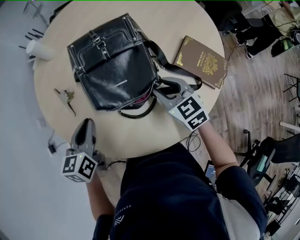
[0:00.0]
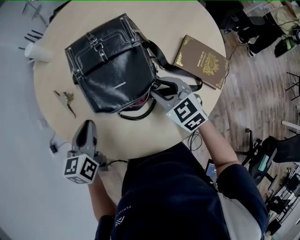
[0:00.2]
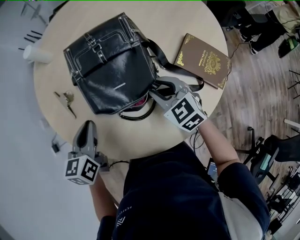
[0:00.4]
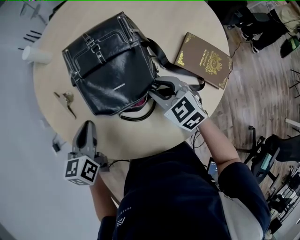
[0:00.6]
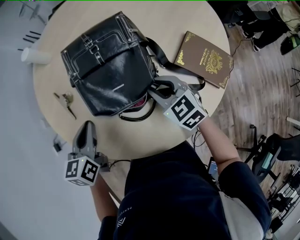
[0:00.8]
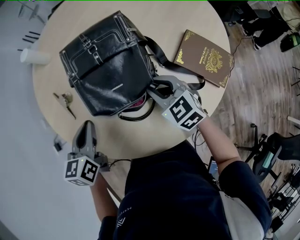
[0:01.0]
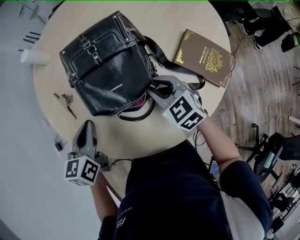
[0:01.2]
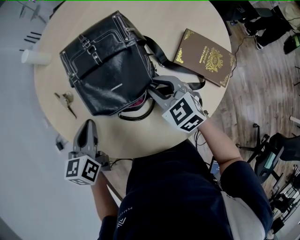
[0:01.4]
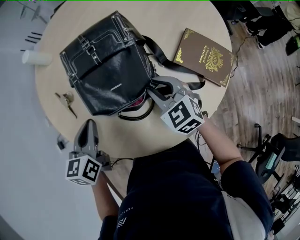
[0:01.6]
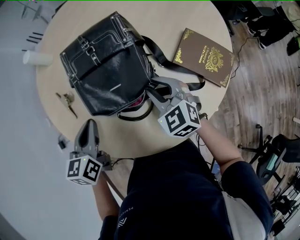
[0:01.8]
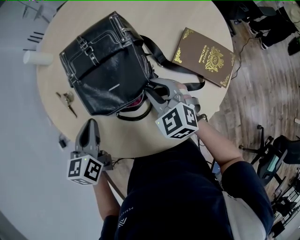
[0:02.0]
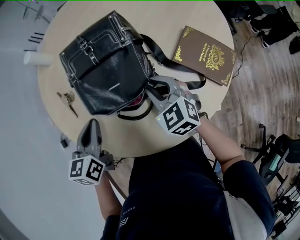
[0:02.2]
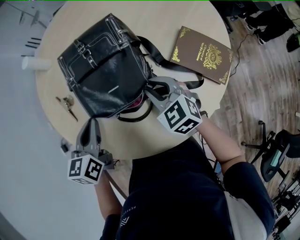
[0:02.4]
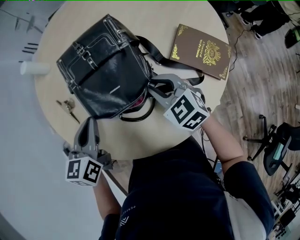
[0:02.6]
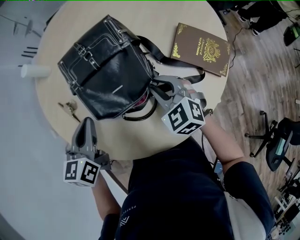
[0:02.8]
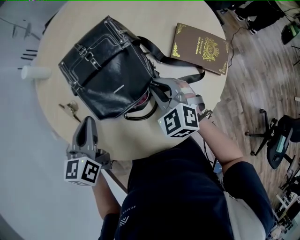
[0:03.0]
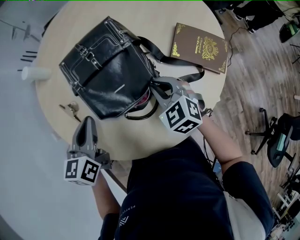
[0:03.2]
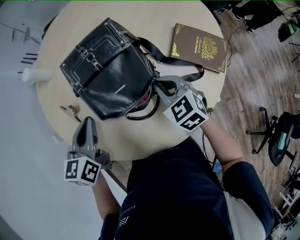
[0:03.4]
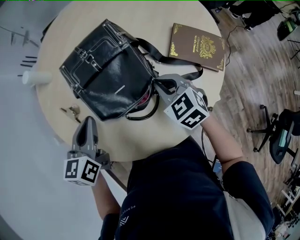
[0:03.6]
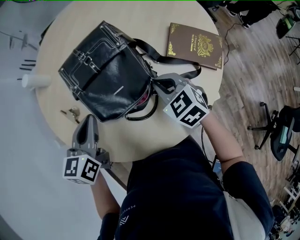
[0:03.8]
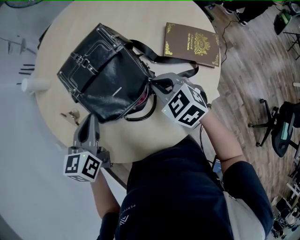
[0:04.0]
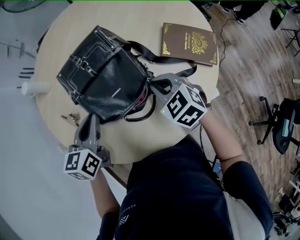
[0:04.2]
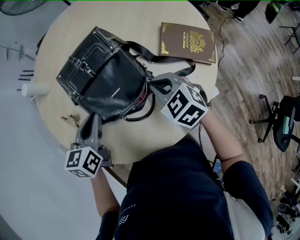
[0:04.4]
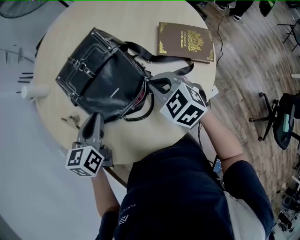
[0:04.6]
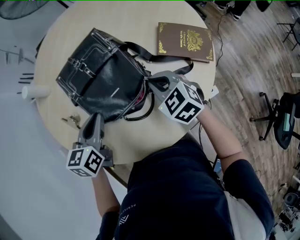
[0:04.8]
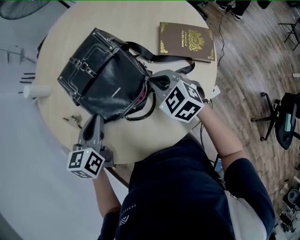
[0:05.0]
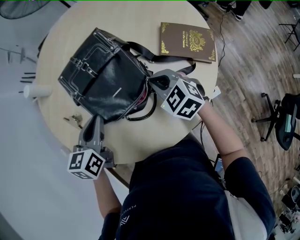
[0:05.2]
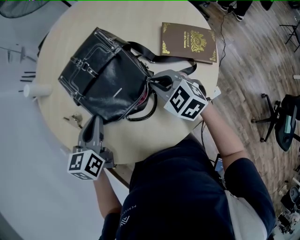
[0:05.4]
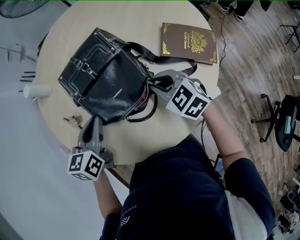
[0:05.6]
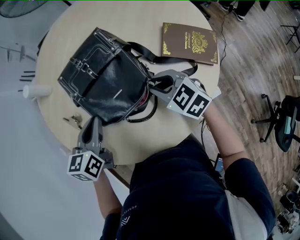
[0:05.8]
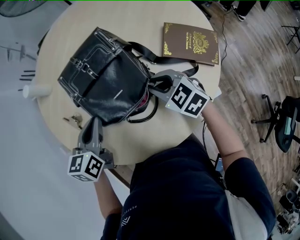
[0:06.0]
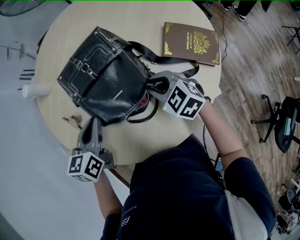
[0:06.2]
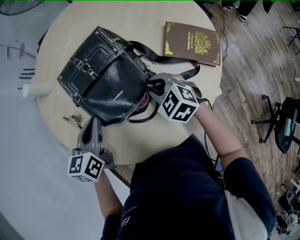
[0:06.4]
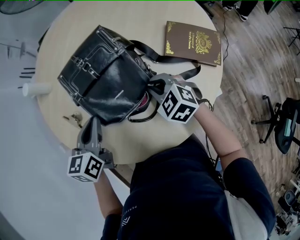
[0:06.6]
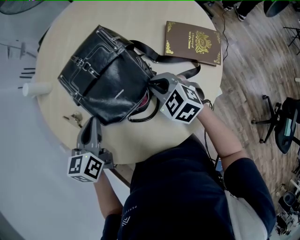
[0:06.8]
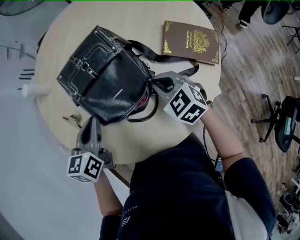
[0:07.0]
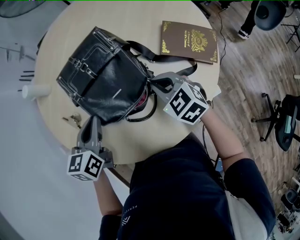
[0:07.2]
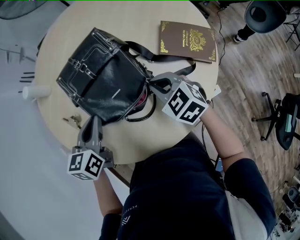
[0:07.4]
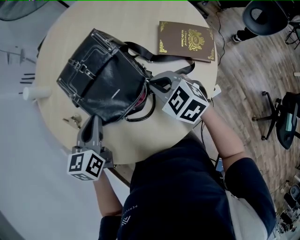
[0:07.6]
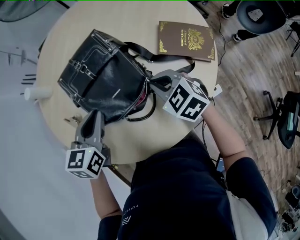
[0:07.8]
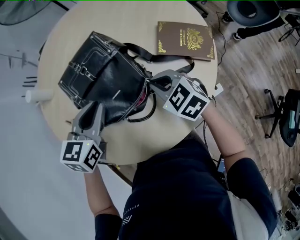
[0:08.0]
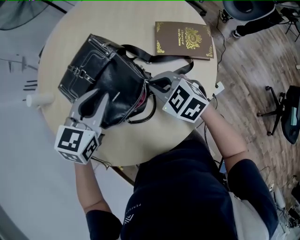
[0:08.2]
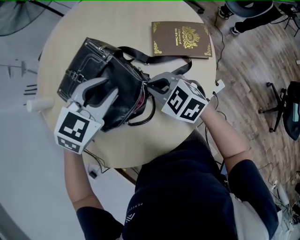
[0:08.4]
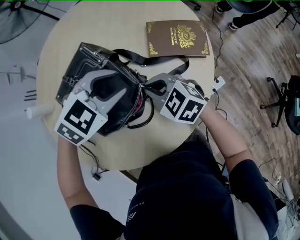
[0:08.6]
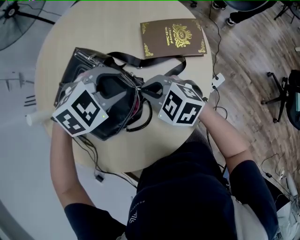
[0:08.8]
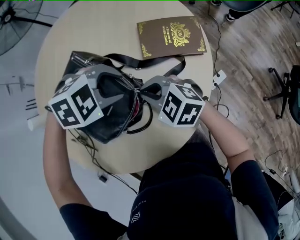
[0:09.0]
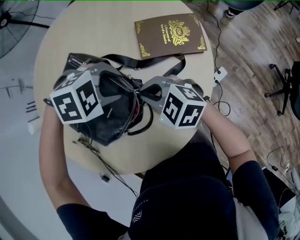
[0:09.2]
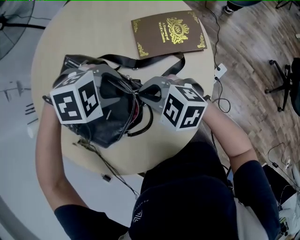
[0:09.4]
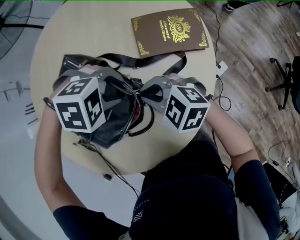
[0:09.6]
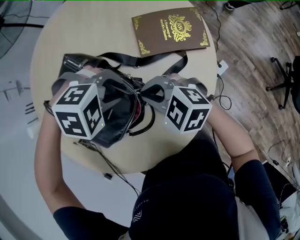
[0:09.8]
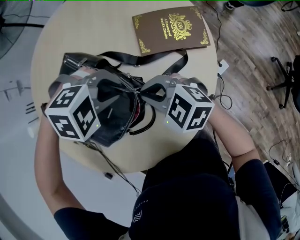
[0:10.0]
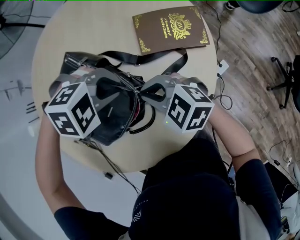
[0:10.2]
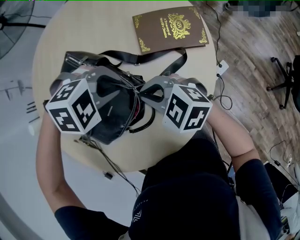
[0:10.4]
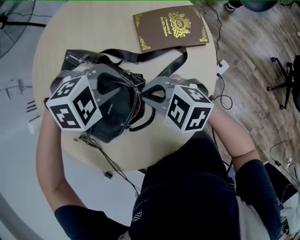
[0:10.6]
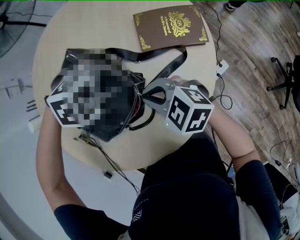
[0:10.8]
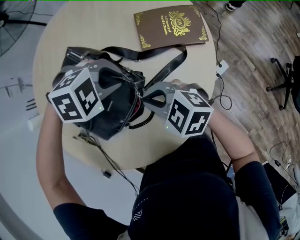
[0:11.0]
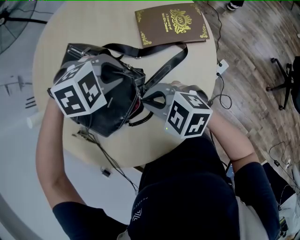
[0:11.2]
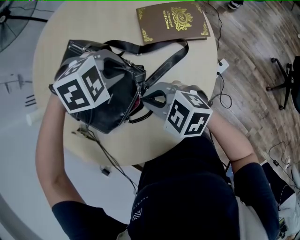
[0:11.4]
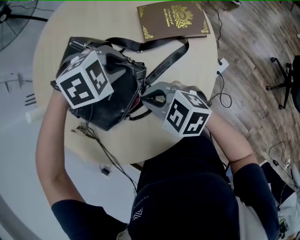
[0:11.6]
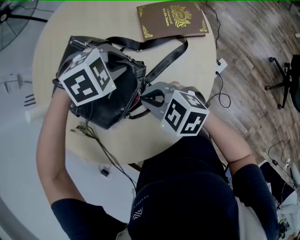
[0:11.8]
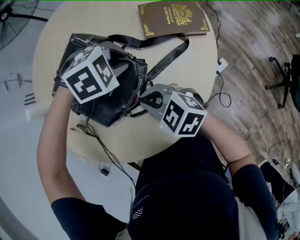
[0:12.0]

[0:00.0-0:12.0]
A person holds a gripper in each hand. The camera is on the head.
0.0 to 1.6 s: The grippers stay close to where they were, moving slightly.
1.6 to 3.0 s: There are only small adjustments of the grippers.
3.0 to 4.4 s: There are only small adjustments of the grippers.
4.4 to 6.0 s: The right gripper opens its fingers.
6.0 to 7.6 s: The right gripper closes up.
7.6 to 9.0 s: The left gripper changes place by roughly 20 cm, tilts its fingers roughly 40 degrees downward, and opens its fingers.
9.0 to 10.4 s: The left gripper closes.
10.4 to 12.0 s: The right gripper ends up roughly 10 cm from where it was.

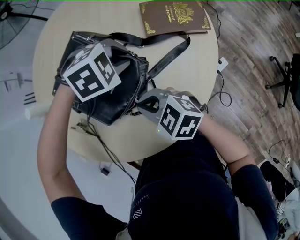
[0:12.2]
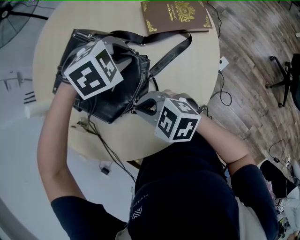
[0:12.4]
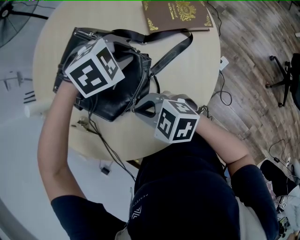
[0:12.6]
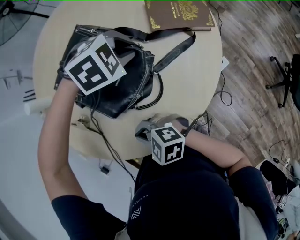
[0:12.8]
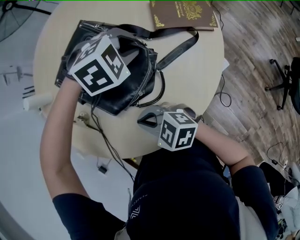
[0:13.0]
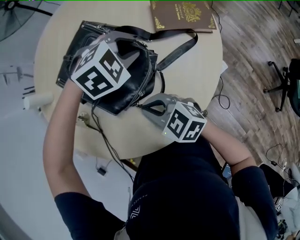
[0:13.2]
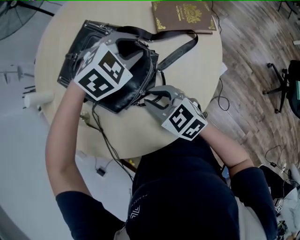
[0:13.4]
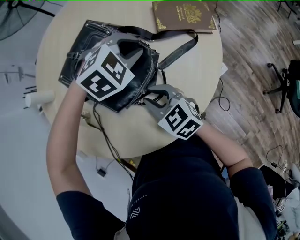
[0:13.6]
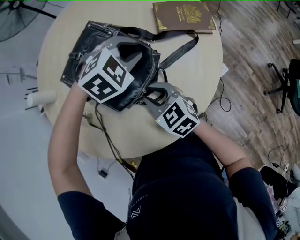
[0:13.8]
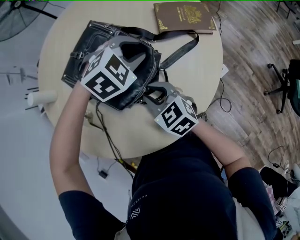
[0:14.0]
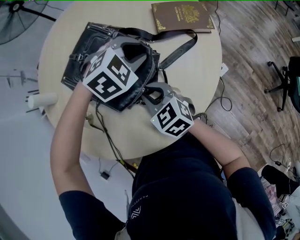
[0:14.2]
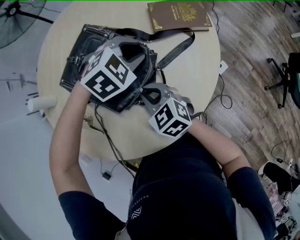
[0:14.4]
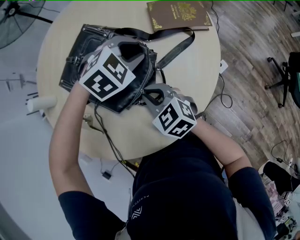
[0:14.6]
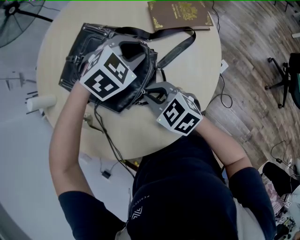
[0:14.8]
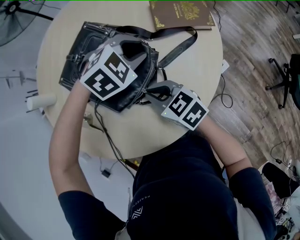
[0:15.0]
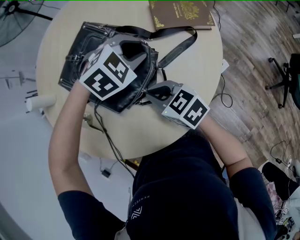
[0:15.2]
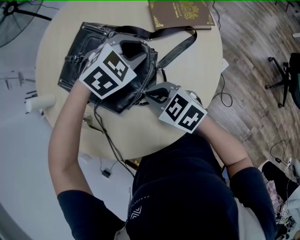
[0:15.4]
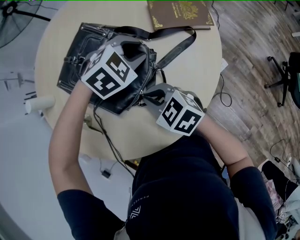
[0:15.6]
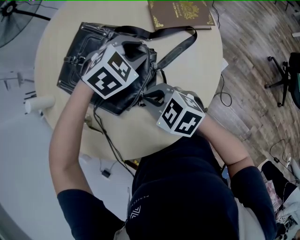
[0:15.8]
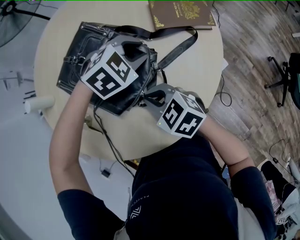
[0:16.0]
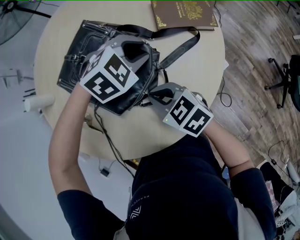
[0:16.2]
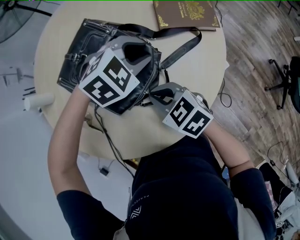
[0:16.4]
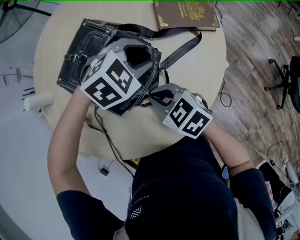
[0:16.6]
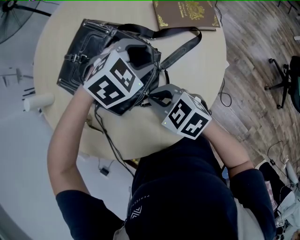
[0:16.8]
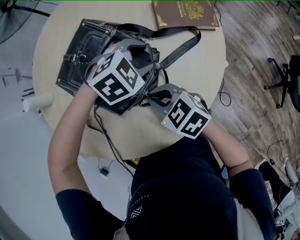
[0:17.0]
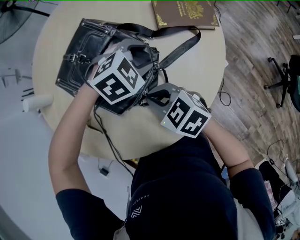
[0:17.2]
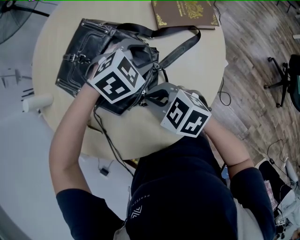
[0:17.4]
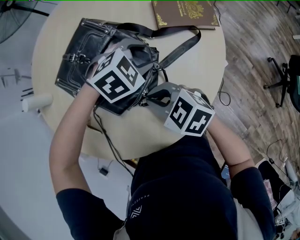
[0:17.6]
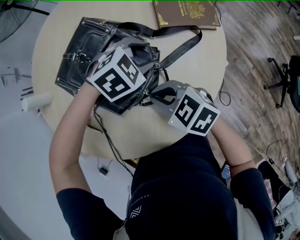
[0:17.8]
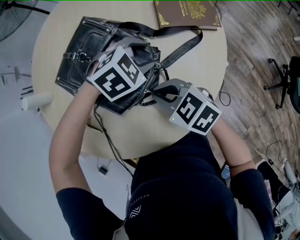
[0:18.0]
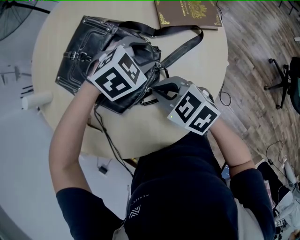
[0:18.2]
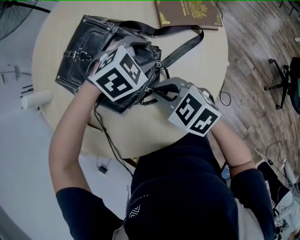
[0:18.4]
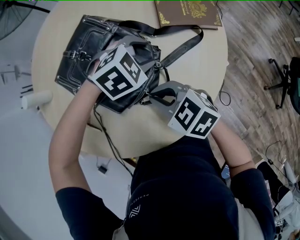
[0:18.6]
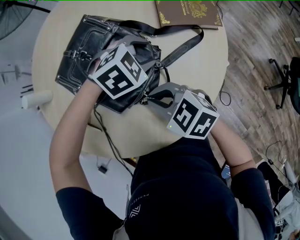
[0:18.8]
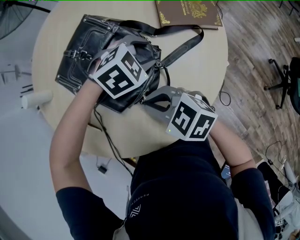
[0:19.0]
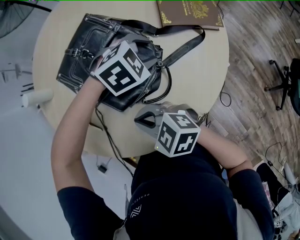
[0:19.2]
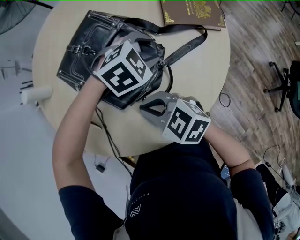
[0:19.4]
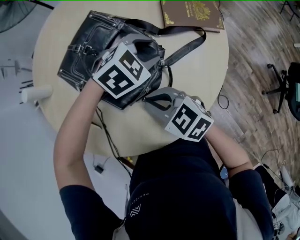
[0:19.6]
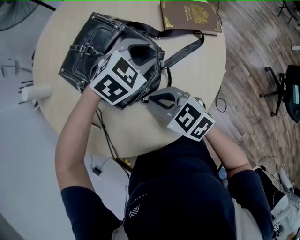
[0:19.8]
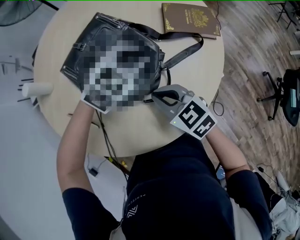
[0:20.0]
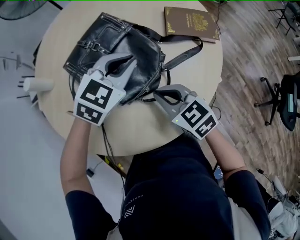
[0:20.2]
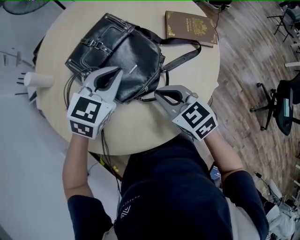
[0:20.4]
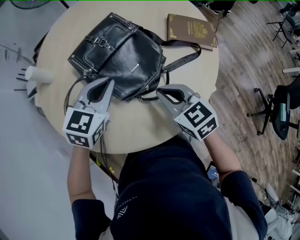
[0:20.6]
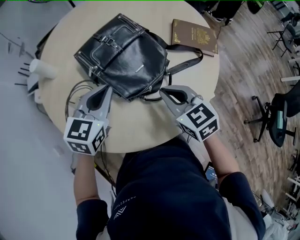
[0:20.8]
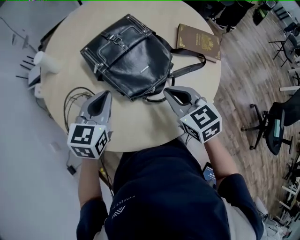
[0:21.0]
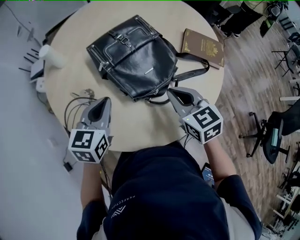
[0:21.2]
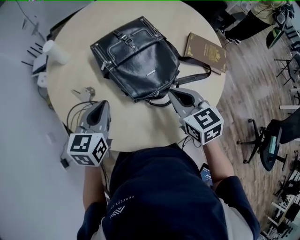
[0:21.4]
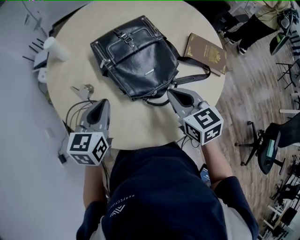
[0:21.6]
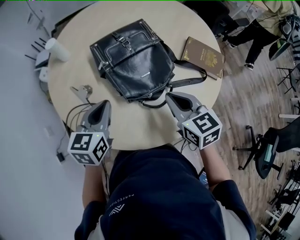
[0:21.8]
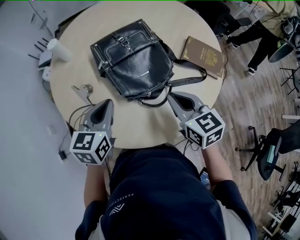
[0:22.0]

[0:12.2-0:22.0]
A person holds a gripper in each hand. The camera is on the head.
12.2 to 13.6 s: The left gripper rotates roughly 20 degrees. Meanwhile the right gripper opens its fingers.
13.6 to 17.8 s: There are only small adjustments of the grippers.
17.8 to 19.2 s: The right gripper changes place by approximately 10 cm.
19.2 to 20.6 s: The left gripper moves about 20 cm, rotates approximately 50 degrees, and closes. The right gripper changes place by some 10 cm, and swivels about 30 degrees.
20.6 to 22.0 s: The left gripper shifts some 5 cm backward, and rotates approximately 30 degrees; the right gripper changes place by about 5 cm.

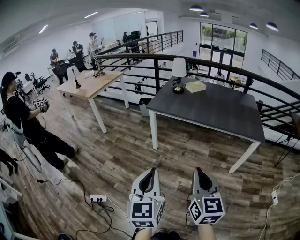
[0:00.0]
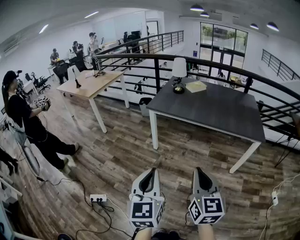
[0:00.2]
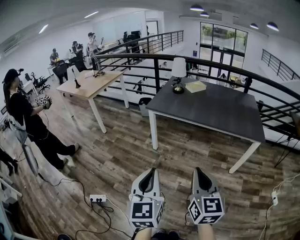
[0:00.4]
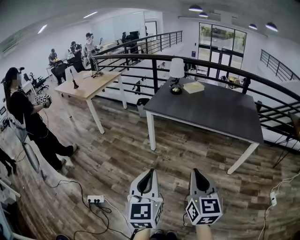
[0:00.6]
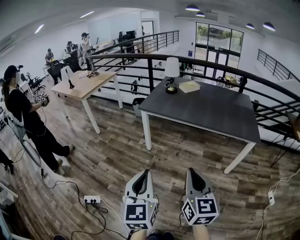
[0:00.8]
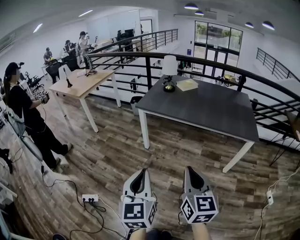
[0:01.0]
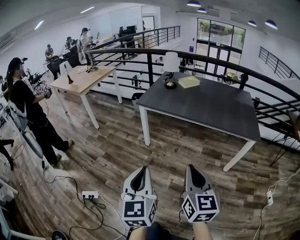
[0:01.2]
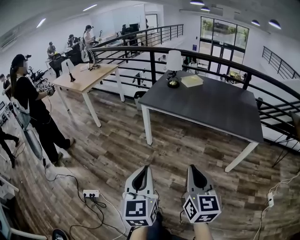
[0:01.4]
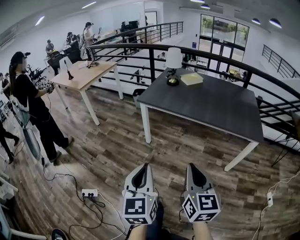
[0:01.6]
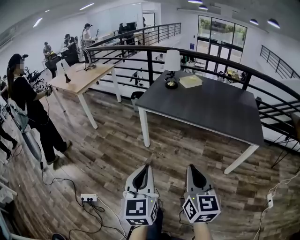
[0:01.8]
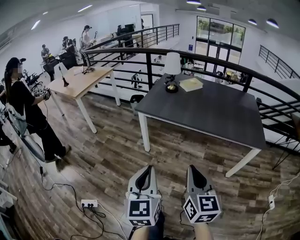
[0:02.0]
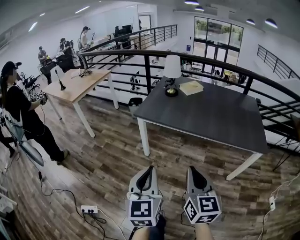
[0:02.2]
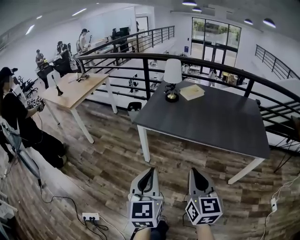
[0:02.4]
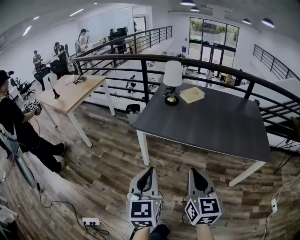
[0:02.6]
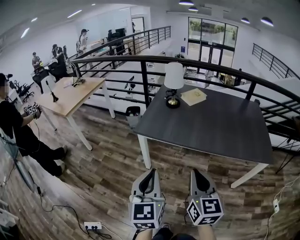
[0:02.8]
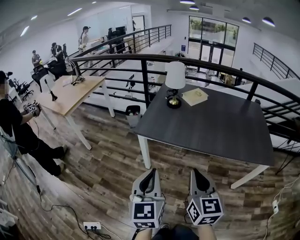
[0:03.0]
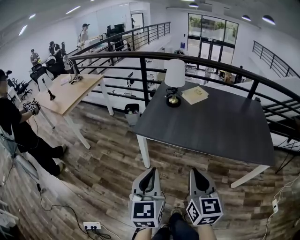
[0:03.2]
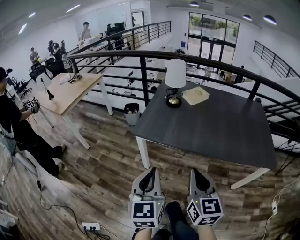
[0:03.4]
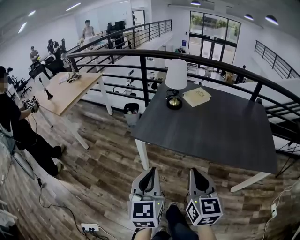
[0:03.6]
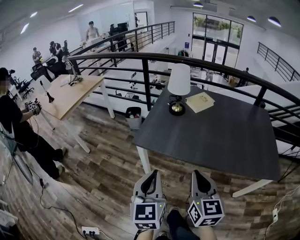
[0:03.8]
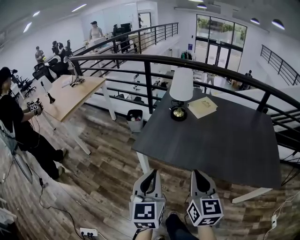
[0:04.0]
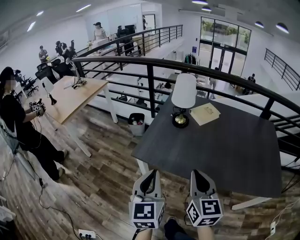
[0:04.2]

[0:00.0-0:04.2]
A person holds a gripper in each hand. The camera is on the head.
0.0 to 1.4 s: The right gripper changes place by some 5 cm. The left gripper changes place by about 5 cm.
1.4 to 2.8 s: Both grippers move forward, about 30 cm.
2.8 to 4.2 s: The grippers both shift forward by approximately 25 cm.
